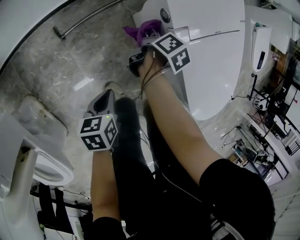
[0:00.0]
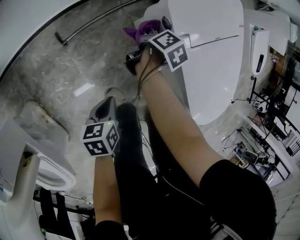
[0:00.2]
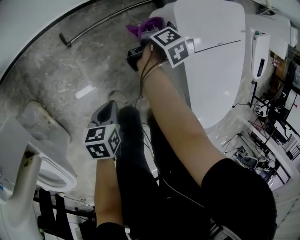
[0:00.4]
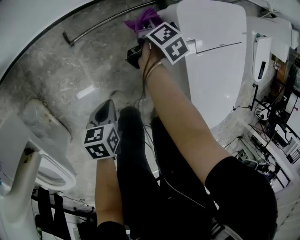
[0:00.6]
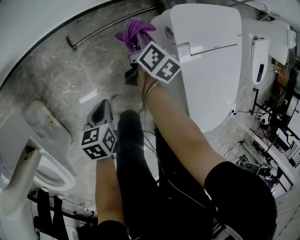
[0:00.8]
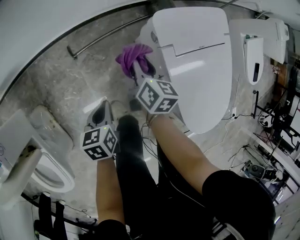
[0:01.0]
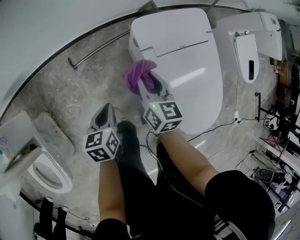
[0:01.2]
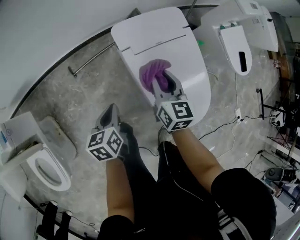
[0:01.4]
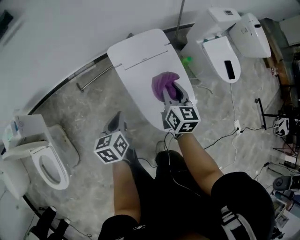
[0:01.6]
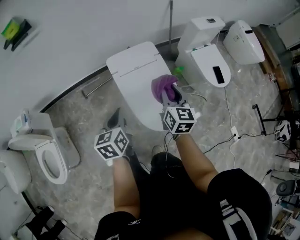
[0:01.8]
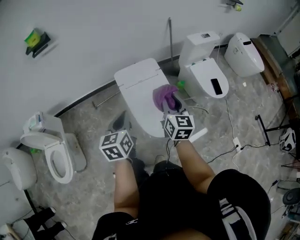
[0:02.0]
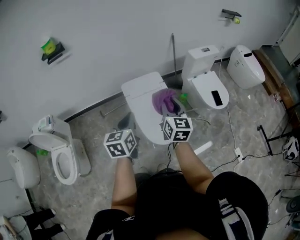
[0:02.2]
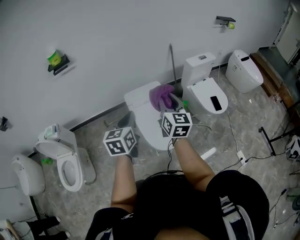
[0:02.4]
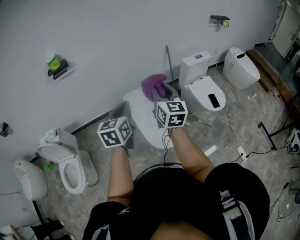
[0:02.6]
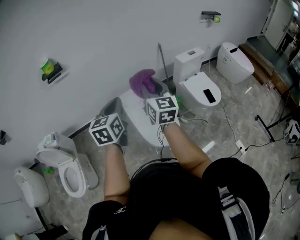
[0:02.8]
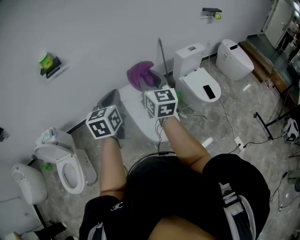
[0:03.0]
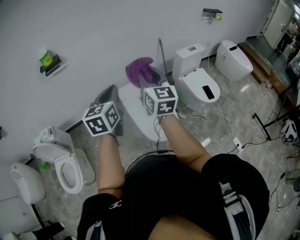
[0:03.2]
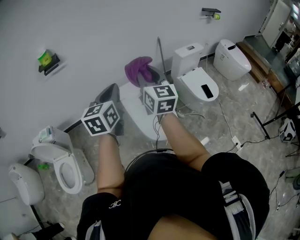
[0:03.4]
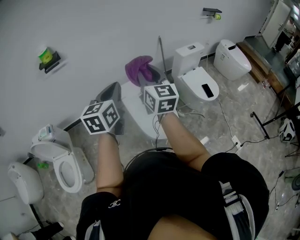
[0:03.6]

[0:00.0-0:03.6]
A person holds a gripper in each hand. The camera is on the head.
0:00.0 to 0:01.8: The grippers both shift upward by approximately 50 cm. The right gripper tips its fingers upward by roughly 40 degrees. Meanwhile the left gripper turns by roughly 40 degrees.
0:01.8 to 0:03.6: The grippers both shift upward by approximately 35 cm. The right gripper rotates about 20 degrees. Meanwhile the left gripper changes its angle by approximately 30 degrees.

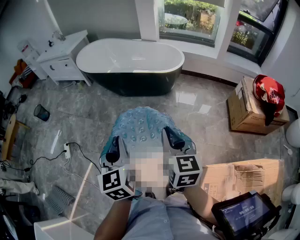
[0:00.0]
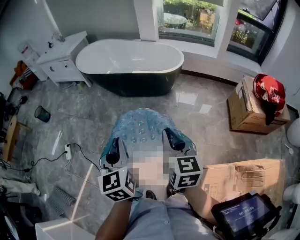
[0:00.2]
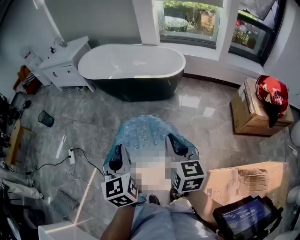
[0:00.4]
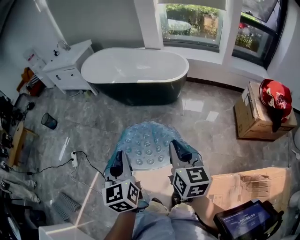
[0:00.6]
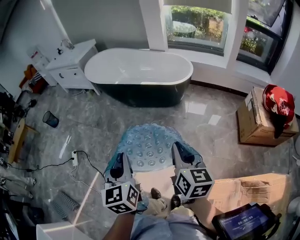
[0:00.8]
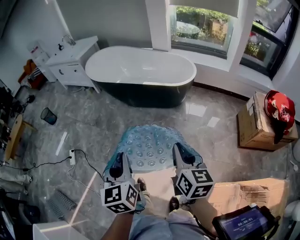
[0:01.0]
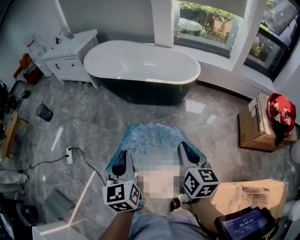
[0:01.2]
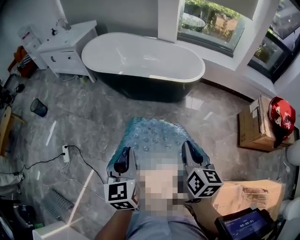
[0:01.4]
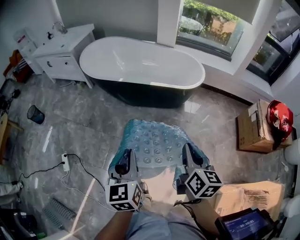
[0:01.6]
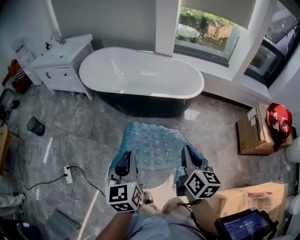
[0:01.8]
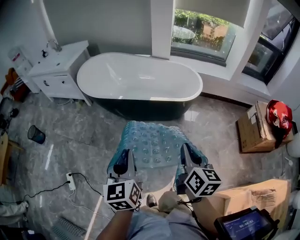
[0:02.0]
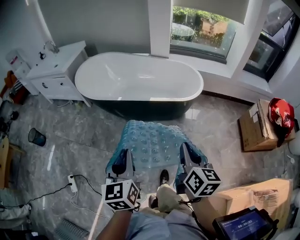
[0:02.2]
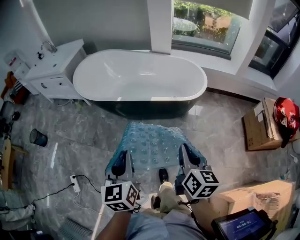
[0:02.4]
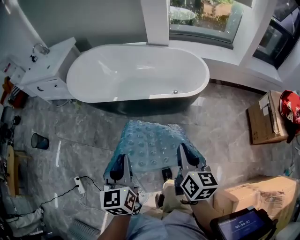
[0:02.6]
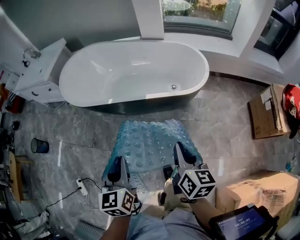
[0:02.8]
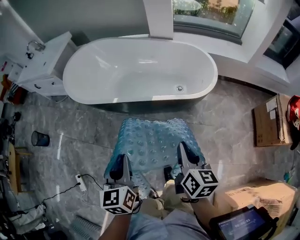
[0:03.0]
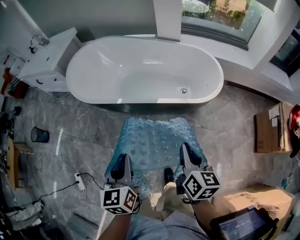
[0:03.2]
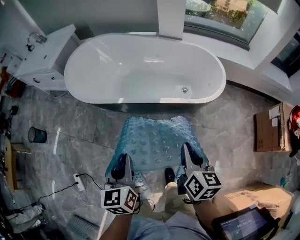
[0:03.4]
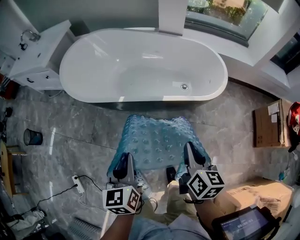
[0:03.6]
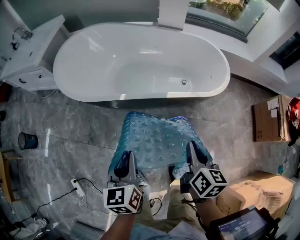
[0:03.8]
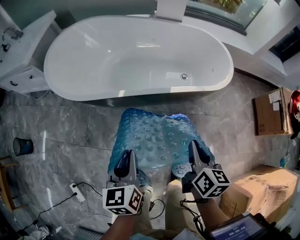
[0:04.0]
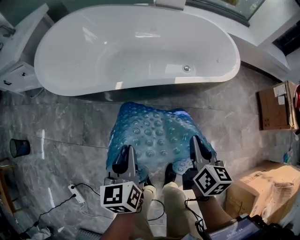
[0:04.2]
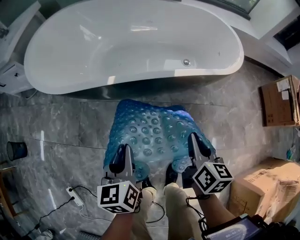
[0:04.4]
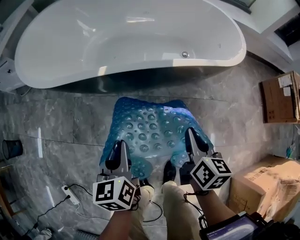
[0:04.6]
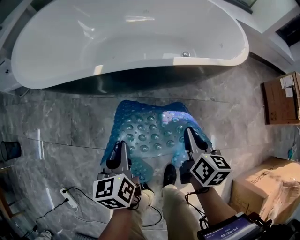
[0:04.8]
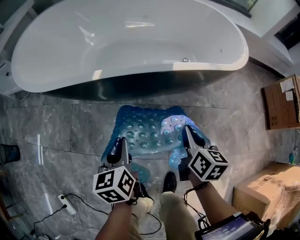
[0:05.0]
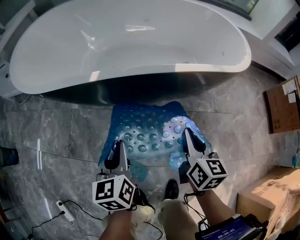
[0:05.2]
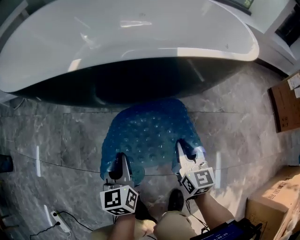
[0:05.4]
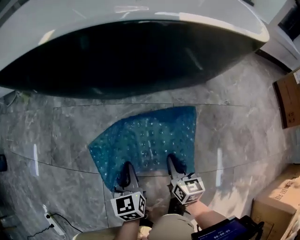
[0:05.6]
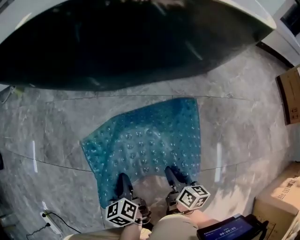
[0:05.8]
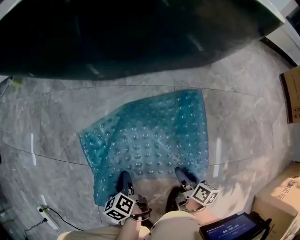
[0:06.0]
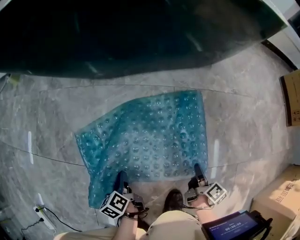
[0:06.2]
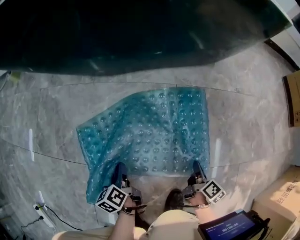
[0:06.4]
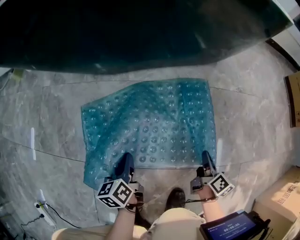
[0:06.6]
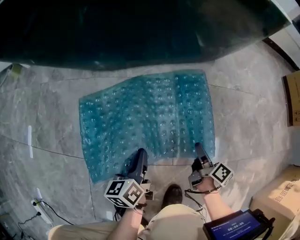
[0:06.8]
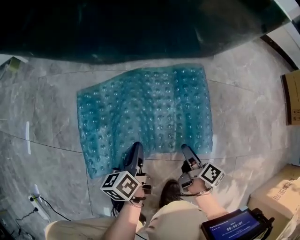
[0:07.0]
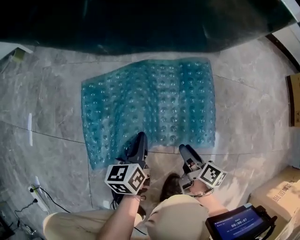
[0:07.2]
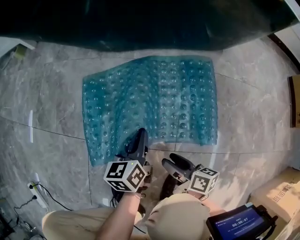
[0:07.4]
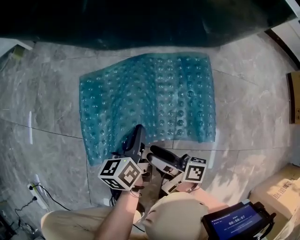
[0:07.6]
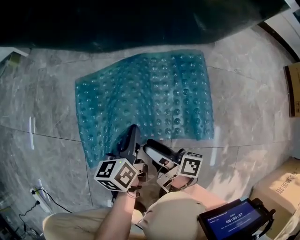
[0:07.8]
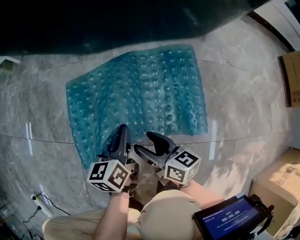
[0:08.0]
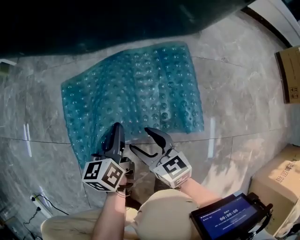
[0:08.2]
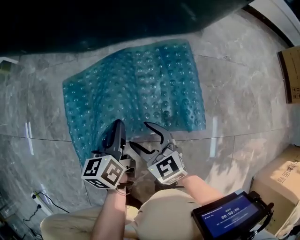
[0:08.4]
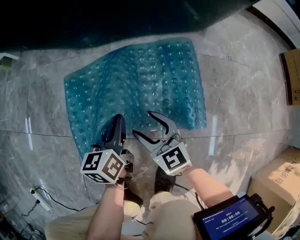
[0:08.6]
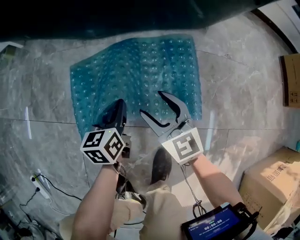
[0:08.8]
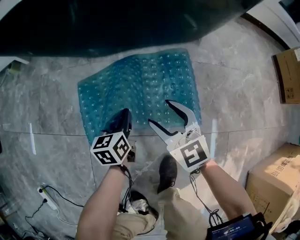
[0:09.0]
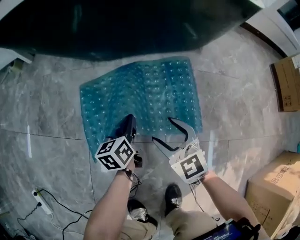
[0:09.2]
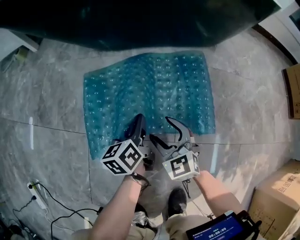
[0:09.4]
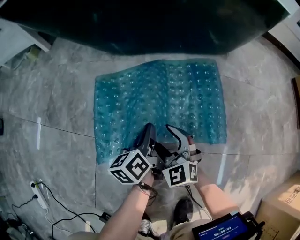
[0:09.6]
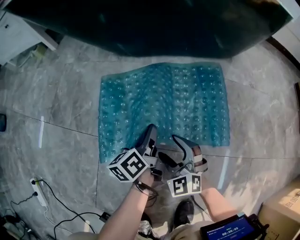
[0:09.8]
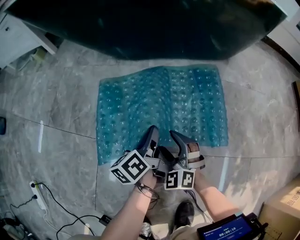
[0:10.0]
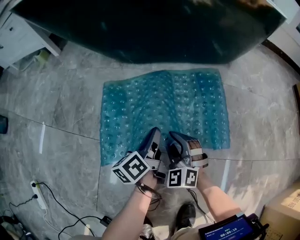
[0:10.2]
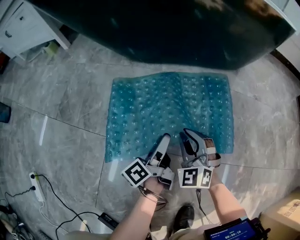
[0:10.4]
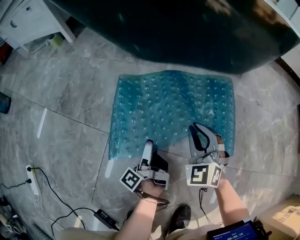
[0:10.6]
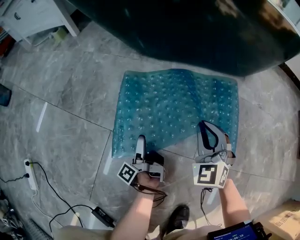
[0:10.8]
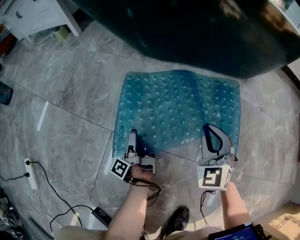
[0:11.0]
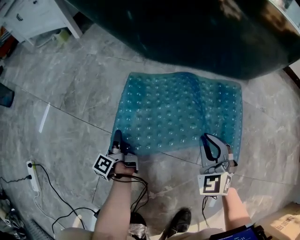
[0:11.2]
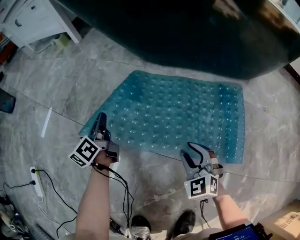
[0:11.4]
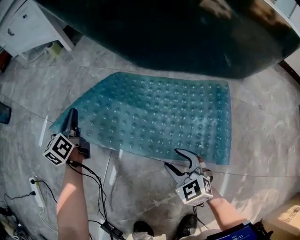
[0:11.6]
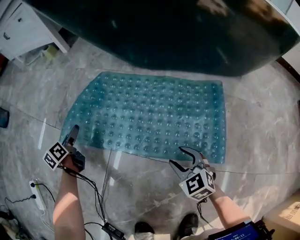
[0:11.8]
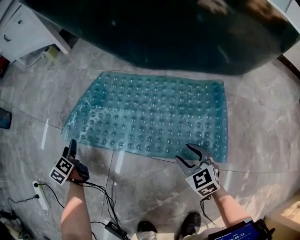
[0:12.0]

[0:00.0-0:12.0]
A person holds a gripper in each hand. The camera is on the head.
0:00.0 to 0:01.6: The left gripper shifts approximately 25 cm forward and to the left. The right gripper goes some 20 cm forward.
0:01.6 to 0:03.0: Both grippers move forward, roughly 30 cm.
0:03.0 to 0:04.4: The right gripper shifts roughly 30 cm downward and to the left. The left gripper heads downward, to the left and forward, covering approximately 35 cm.
0:04.4 to 0:06.0: Both grippers move downward, about 60 cm. The left gripper swivels roughly 30 degrees, while the right gripper swivels roughly 30 degrees, and opens its fingers.
0:06.0 to 0:07.6: The left gripper shifts some 15 cm to the right, forward and upward, and swivels roughly 30 degrees. Meanwhile the right gripper goes some 15 cm to the left and upward, angles its fingers upward, by approximately 30 degrees, and closes, then opens again.
0:07.6 to 0:09.0: The right gripper travels upward, forward and to the right by approximately 15 cm, and rotates around the line of its fingers by roughly 80 degrees, counterclockwise from behind.
0:09.0 to 0:10.4: The left gripper goes approximately 5 cm backward, twists roughly 50 degrees counterclockwise, seen from behind, and opens up; the right gripper is displaced downward by approximately 10 cm, swivels some 40 degrees, and closes up.
0:10.4 to 0:12.0: The left gripper moves up and down over roughly 15 cm, changing direction 2 times, rotates roughly 60 degrees, and closes and opens again. Meanwhile the right gripper is displaced downward by roughly 5 cm, rotates about 30 degrees, and opens.

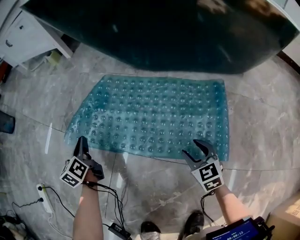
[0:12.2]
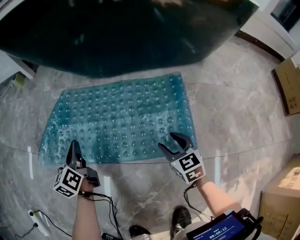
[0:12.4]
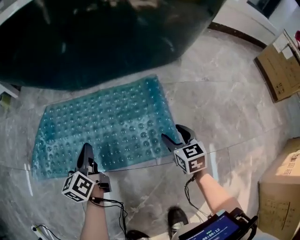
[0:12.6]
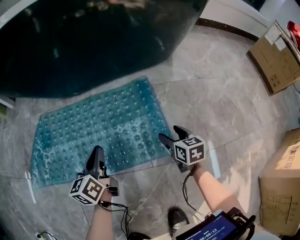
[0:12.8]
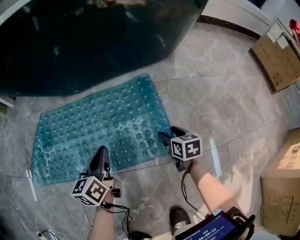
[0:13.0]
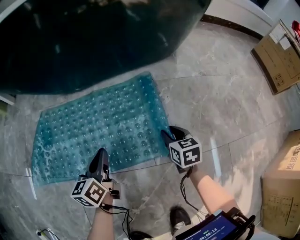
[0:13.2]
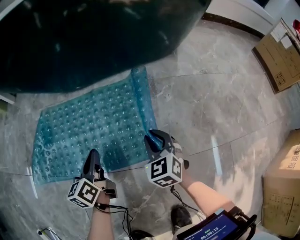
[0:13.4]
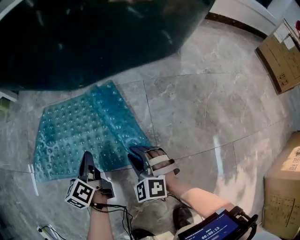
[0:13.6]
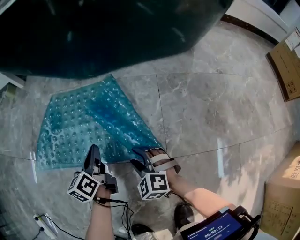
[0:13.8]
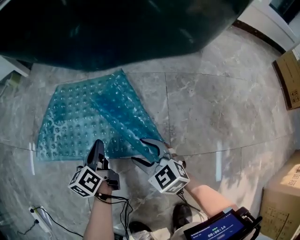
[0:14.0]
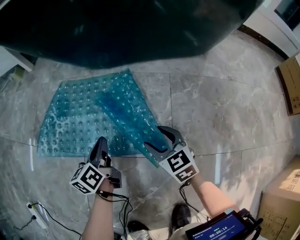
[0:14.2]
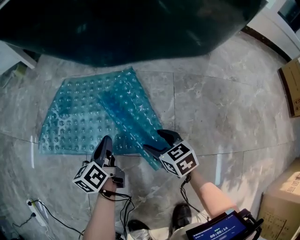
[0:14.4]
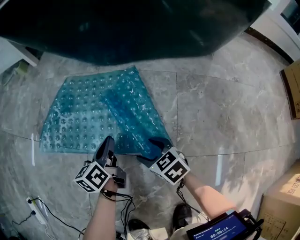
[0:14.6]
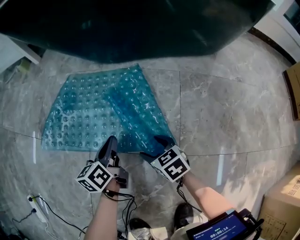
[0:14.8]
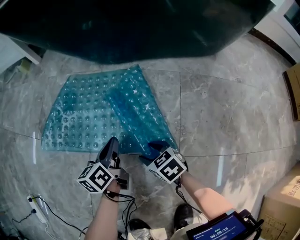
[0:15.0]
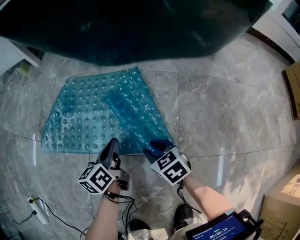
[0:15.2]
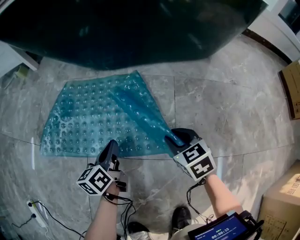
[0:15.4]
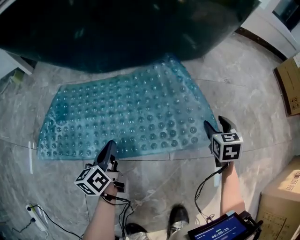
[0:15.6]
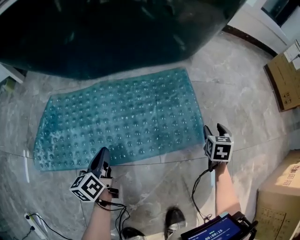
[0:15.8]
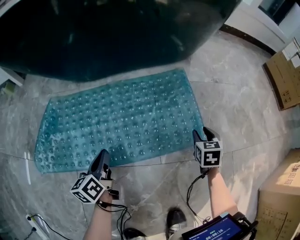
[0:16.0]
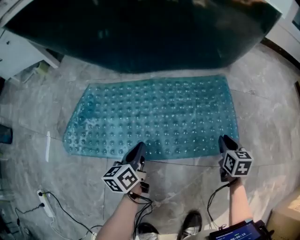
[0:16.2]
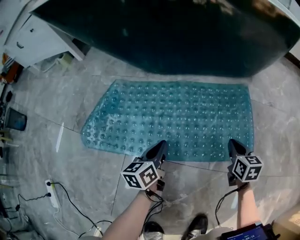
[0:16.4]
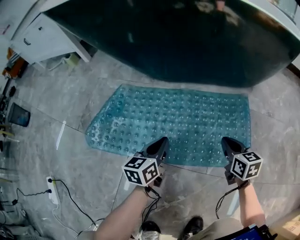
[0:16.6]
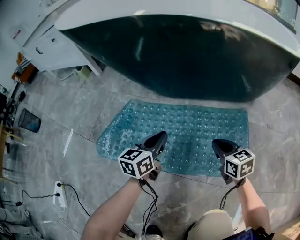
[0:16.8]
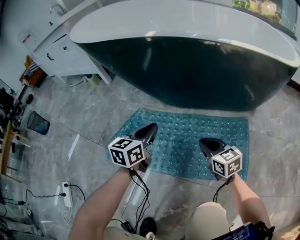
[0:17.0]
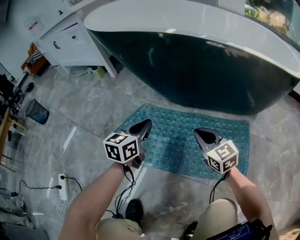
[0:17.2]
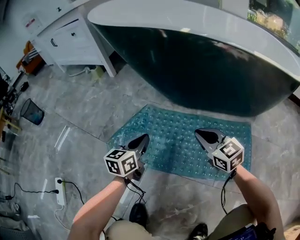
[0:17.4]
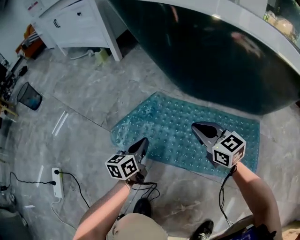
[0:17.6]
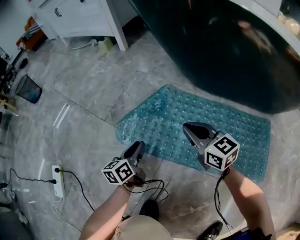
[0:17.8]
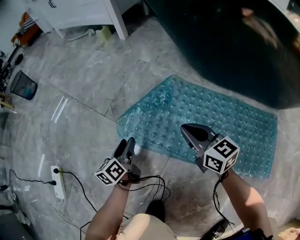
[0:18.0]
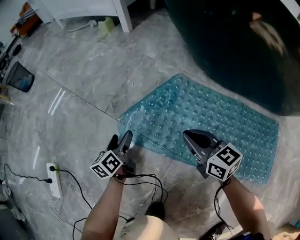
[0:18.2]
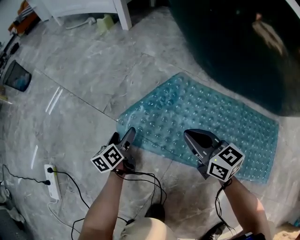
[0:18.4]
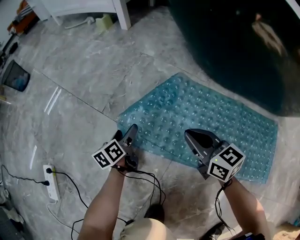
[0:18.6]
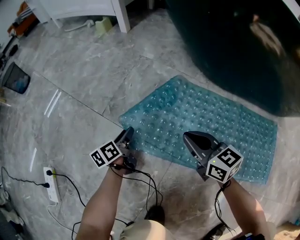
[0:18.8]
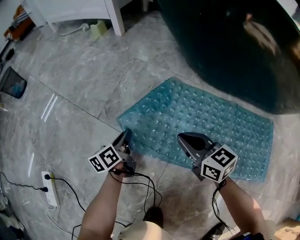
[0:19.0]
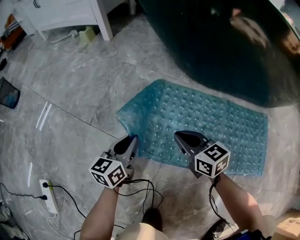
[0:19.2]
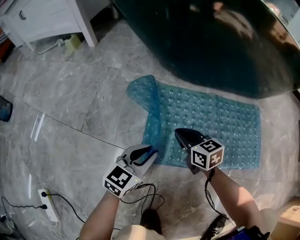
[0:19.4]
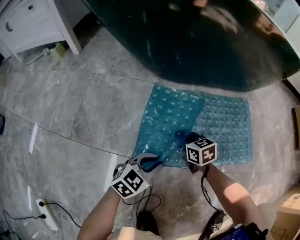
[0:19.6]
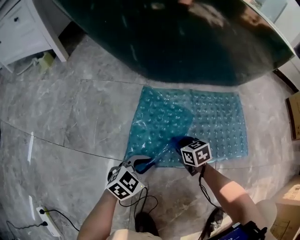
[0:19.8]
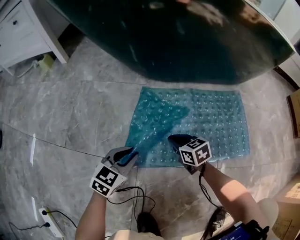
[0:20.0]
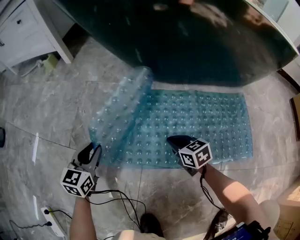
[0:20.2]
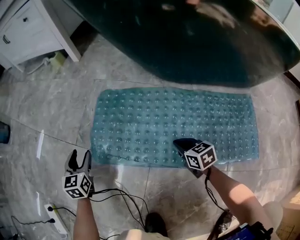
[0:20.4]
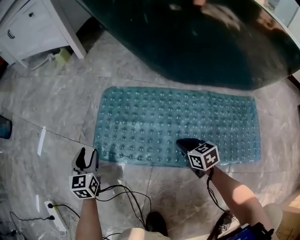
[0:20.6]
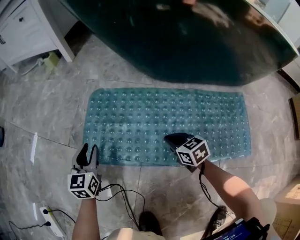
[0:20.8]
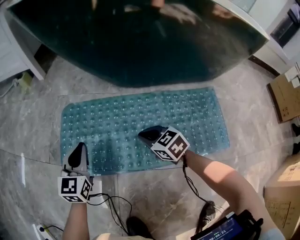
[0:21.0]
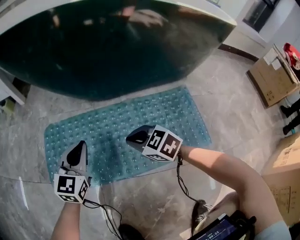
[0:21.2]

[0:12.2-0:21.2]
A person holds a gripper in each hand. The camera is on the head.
0:12.2 to 0:13.8: The left gripper shifts by about 25 cm, and swivels some 30 degrees. The right gripper moves up and down over roughly 10 cm, changing direction 2 times, swivels some 30 degrees, and closes and opens again.
0:13.8 to 0:15.2: The right gripper travels to the right and back again, about 5 cm each way, and changes its angle by about 40 degrees.
0:15.2 to 0:16.6: The right gripper moves up and down over approximately 10 cm, changing direction 2 times, changes its angle by approximately 30 degrees, and closes its fingers; the left gripper ends up roughly 5 cm from where it was.
0:16.6 to 0:18.2: Both grippers are carried about 40 cm. The left gripper swivels approximately 40 degrees, and opens. The right gripper changes its angle by about 40 degrees.
0:18.2 to 0:19.8: The right gripper ends up about 25 cm from where it was, and turns by some 40 degrees; the left gripper travels upward and back again, roughly 10 cm each way, changes its angle by some 100 degrees, and closes its fingers.
0:19.8 to 0:21.2: The right gripper heads upward, covering roughly 15 cm, and swivels about 30 degrees. The left gripper changes its angle by about 30 degrees, and opens, then closes once more.
